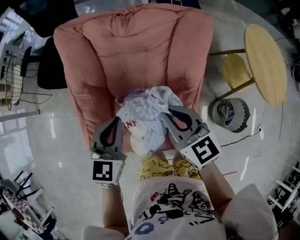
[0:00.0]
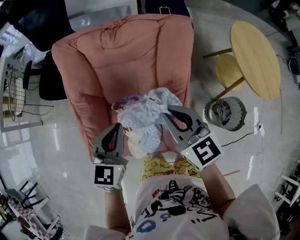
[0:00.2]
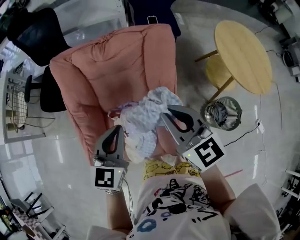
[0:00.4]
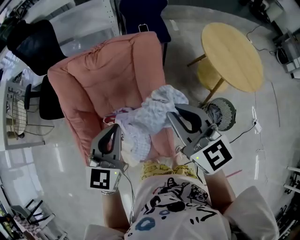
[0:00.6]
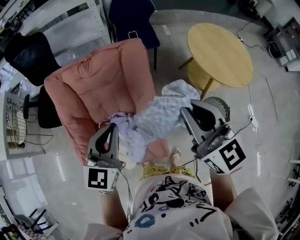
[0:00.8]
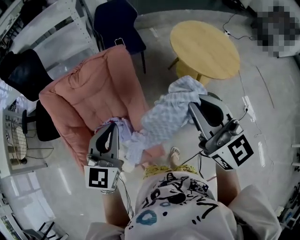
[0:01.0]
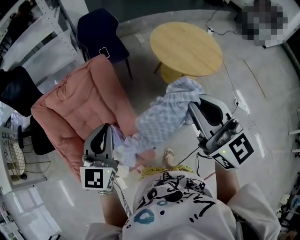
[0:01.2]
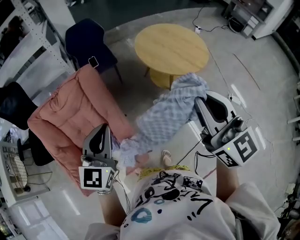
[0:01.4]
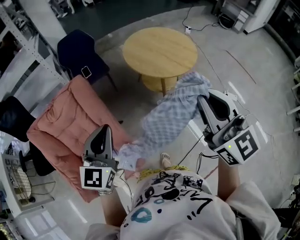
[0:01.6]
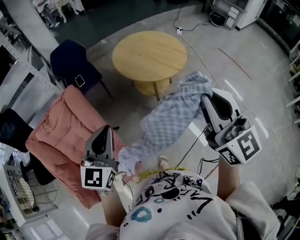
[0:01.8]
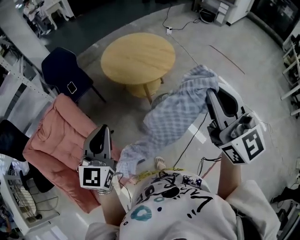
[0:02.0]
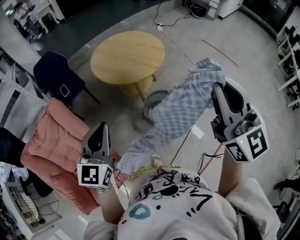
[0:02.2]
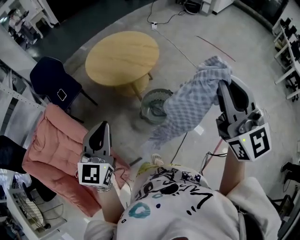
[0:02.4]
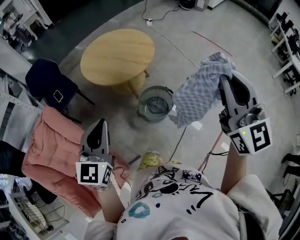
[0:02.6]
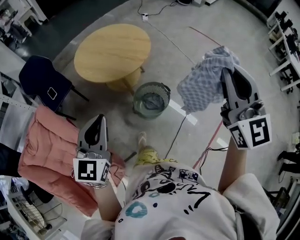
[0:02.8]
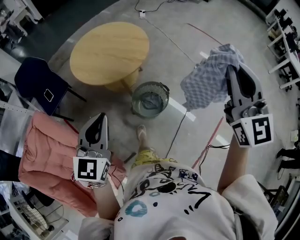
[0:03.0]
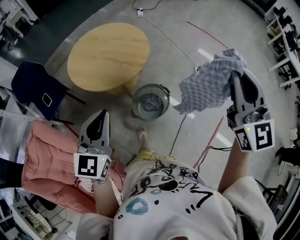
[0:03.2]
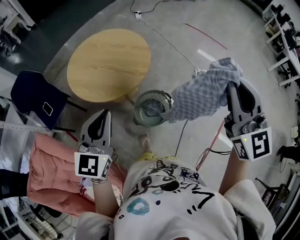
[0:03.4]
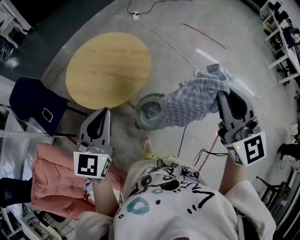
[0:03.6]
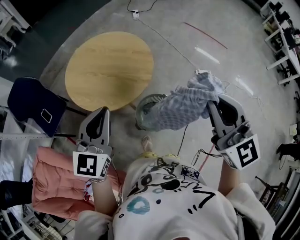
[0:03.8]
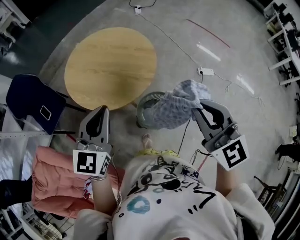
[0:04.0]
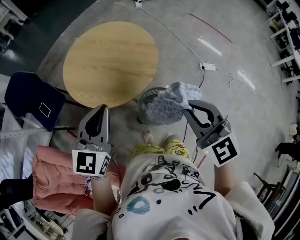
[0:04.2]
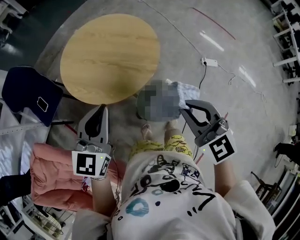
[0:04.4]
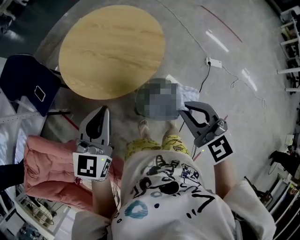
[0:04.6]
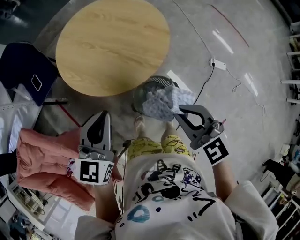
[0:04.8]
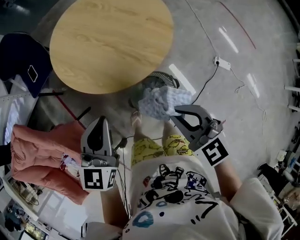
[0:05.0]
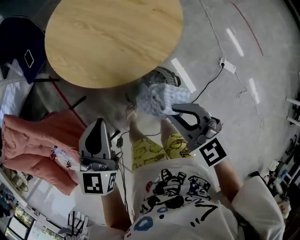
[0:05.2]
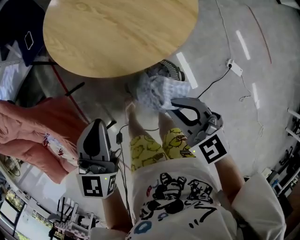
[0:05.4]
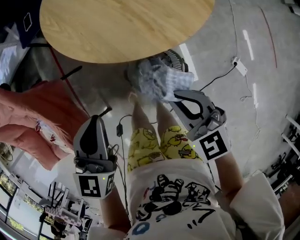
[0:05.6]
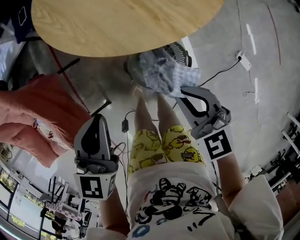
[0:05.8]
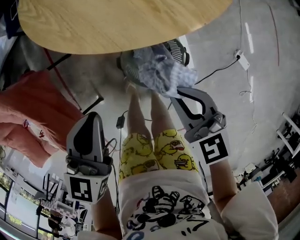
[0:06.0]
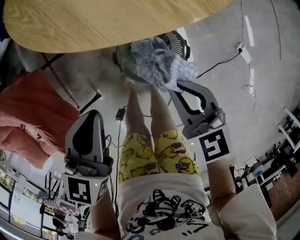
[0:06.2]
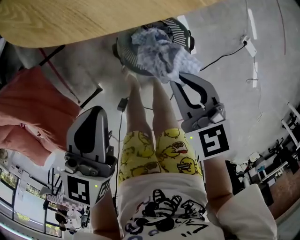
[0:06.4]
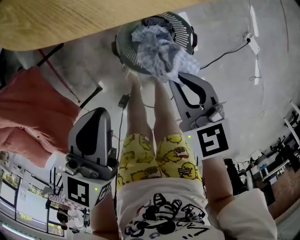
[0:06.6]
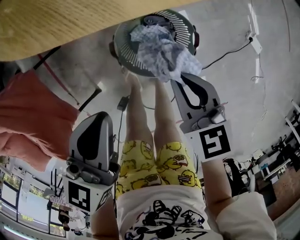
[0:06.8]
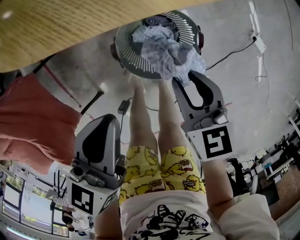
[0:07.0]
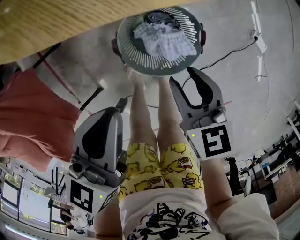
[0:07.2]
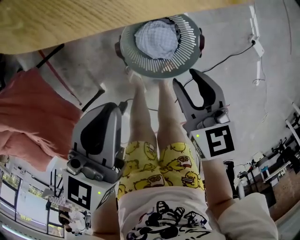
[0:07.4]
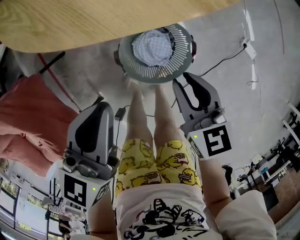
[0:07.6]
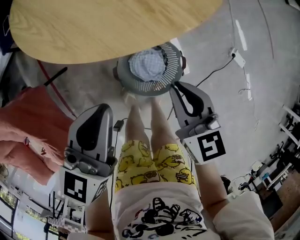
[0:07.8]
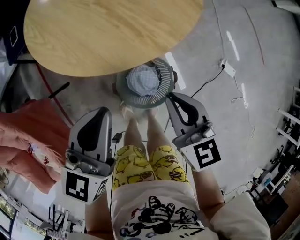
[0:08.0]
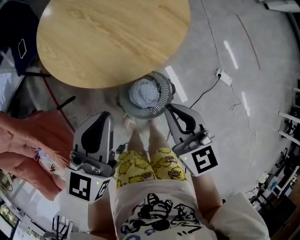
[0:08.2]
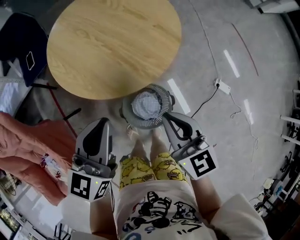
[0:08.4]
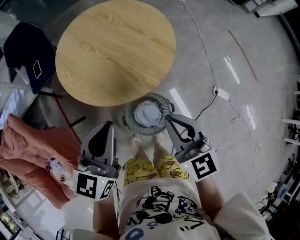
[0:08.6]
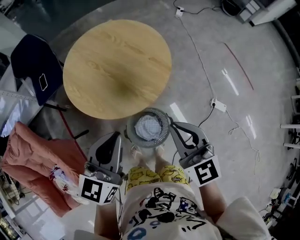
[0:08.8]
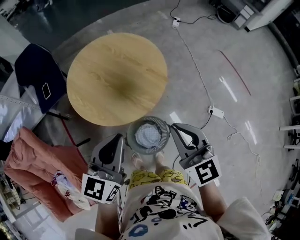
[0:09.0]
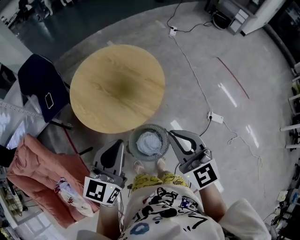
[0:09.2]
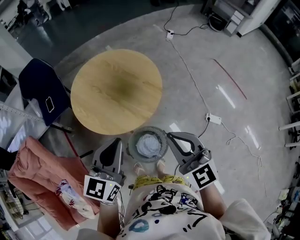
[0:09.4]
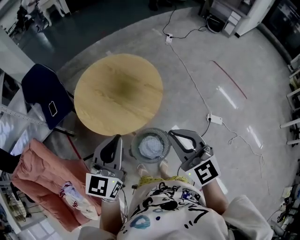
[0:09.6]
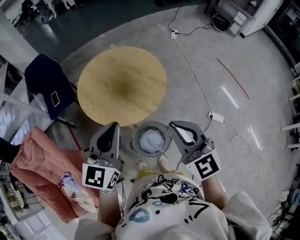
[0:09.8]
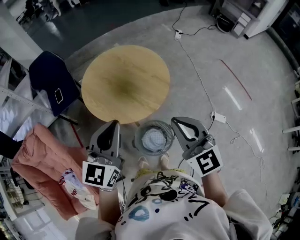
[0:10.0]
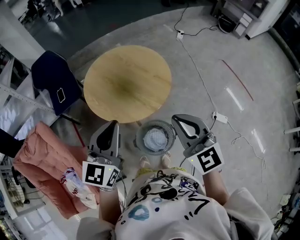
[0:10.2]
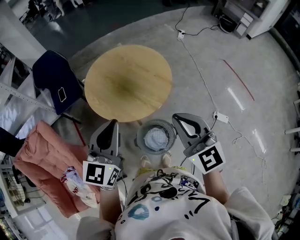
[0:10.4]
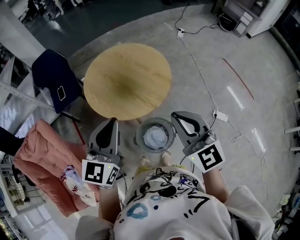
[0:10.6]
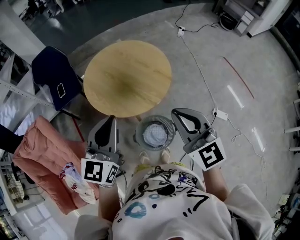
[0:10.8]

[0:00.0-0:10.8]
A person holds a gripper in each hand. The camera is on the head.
0:00.0 to 0:01.6: The right gripper moves roughly 60 cm, and changes its angle by approximately 50 degrees, while the left gripper moves approximately 40 cm, and swivels some 40 degrees.
0:01.6 to 0:03.0: The left gripper ends up approximately 25 cm from where it was, and rotates some 20 degrees; the right gripper shifts by roughly 30 cm, and turns by approximately 40 degrees.
0:03.0 to 0:04.6: The left gripper moves forward and downward, some 25 cm. Meanwhile the right gripper is displaced downward, to the left and forward by roughly 35 cm, and rotates roughly 40 degrees.
0:04.6 to 0:06.2: The grippers both shift downward by approximately 25 cm. The right gripper swivels approximately 30 degrees; the left gripper rotates approximately 30 degrees.
0:06.2 to 0:07.8: The left gripper reaches some 5 cm downward, then returns. The right gripper travels downward and back again, some 10 cm each way, and opens, then closes again.
0:07.8 to 0:09.2: The grippers both shift upward by some 30 cm. The right gripper swivels some 30 degrees.
0:09.2 to 0:10.8: Both grippers move upward, approximately 5 cm.

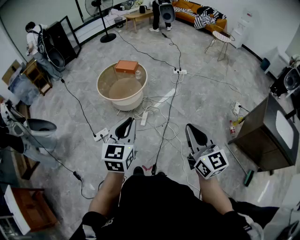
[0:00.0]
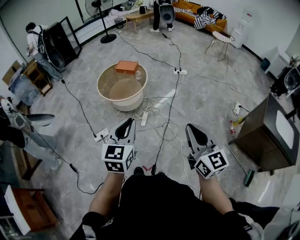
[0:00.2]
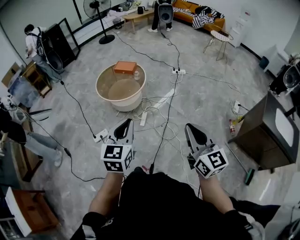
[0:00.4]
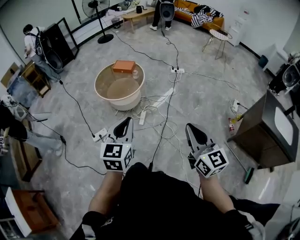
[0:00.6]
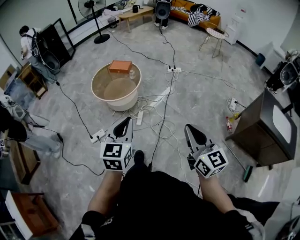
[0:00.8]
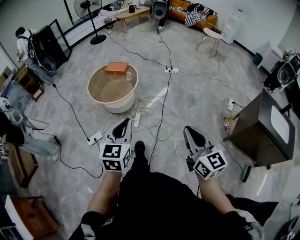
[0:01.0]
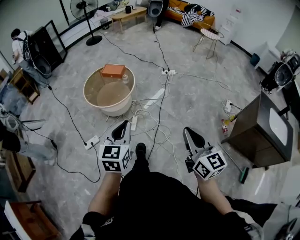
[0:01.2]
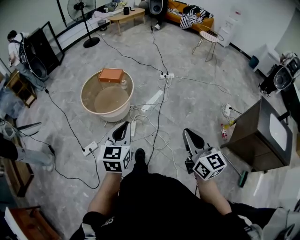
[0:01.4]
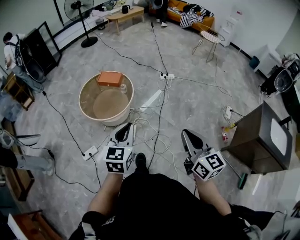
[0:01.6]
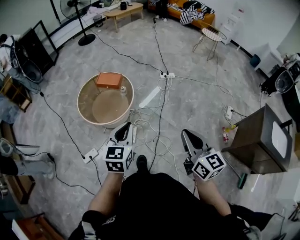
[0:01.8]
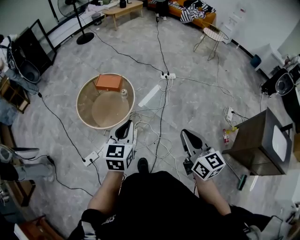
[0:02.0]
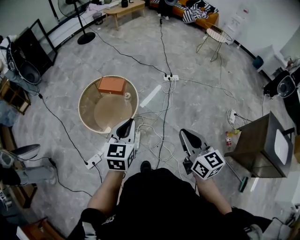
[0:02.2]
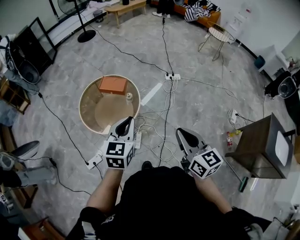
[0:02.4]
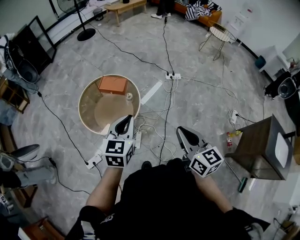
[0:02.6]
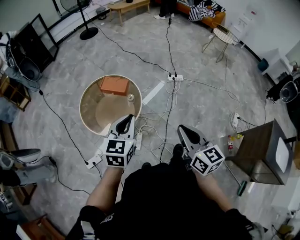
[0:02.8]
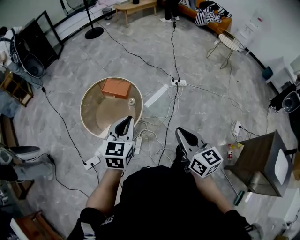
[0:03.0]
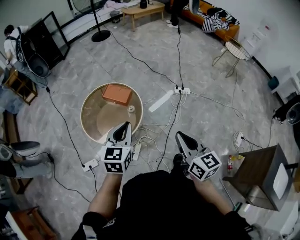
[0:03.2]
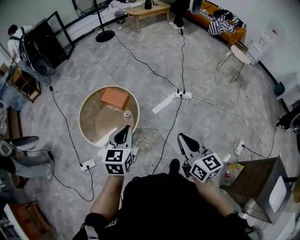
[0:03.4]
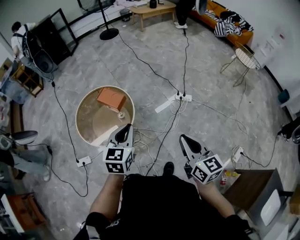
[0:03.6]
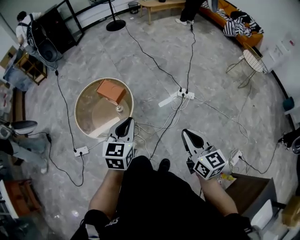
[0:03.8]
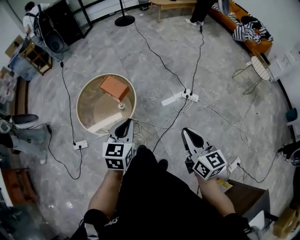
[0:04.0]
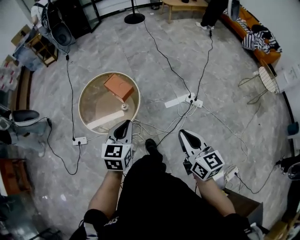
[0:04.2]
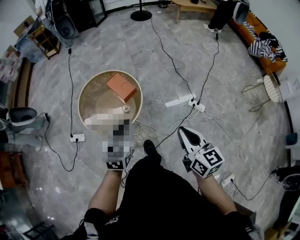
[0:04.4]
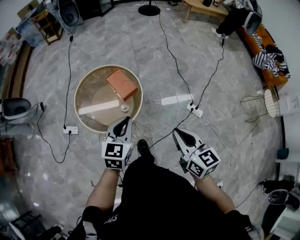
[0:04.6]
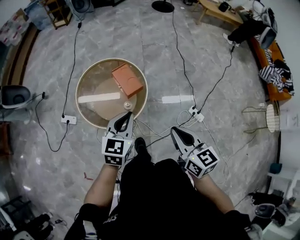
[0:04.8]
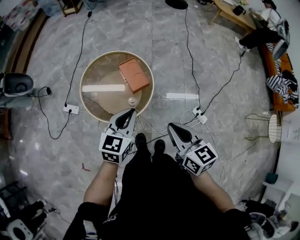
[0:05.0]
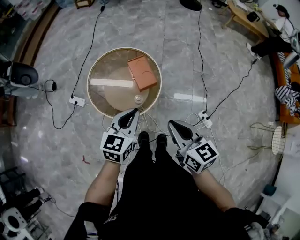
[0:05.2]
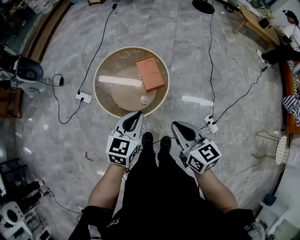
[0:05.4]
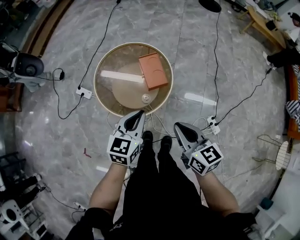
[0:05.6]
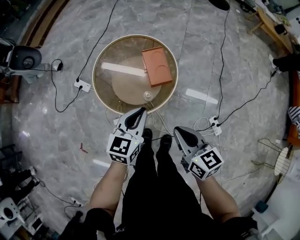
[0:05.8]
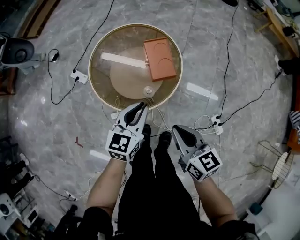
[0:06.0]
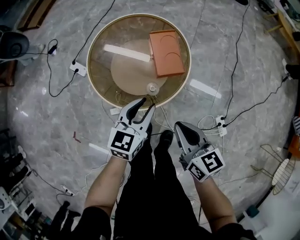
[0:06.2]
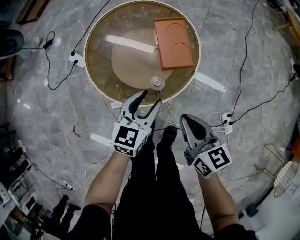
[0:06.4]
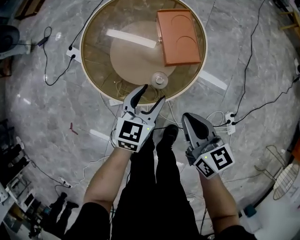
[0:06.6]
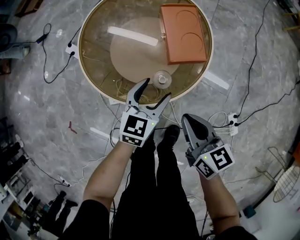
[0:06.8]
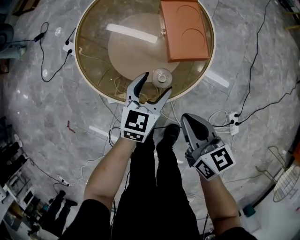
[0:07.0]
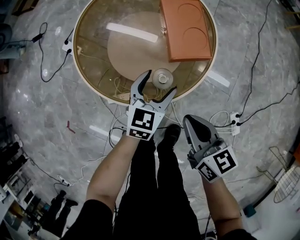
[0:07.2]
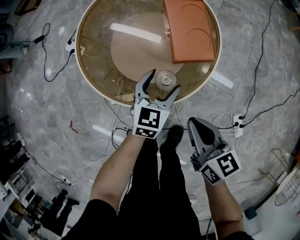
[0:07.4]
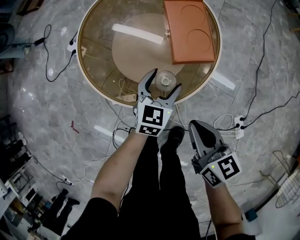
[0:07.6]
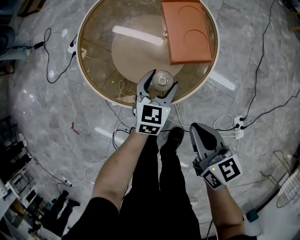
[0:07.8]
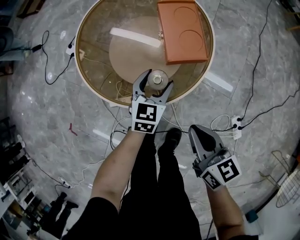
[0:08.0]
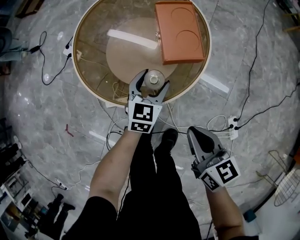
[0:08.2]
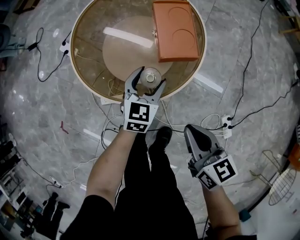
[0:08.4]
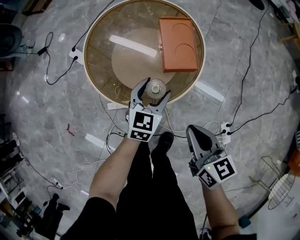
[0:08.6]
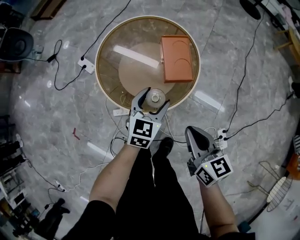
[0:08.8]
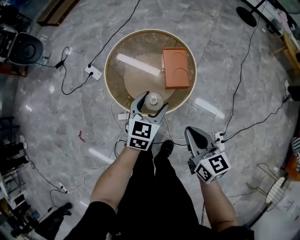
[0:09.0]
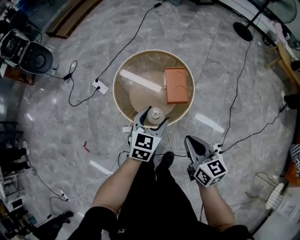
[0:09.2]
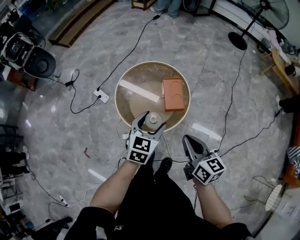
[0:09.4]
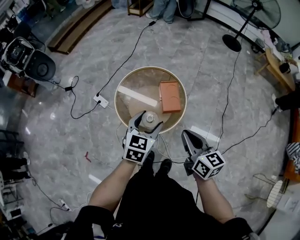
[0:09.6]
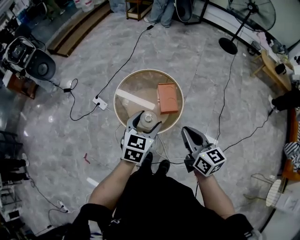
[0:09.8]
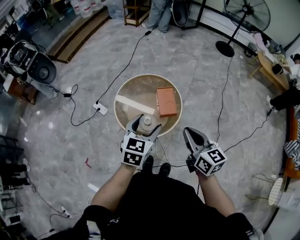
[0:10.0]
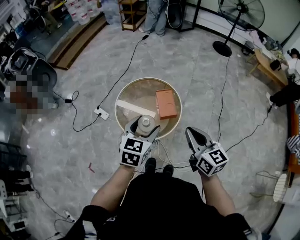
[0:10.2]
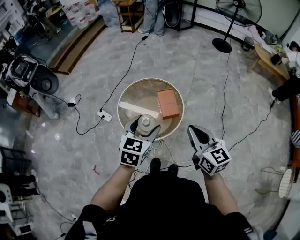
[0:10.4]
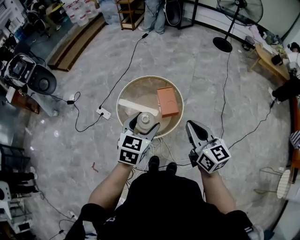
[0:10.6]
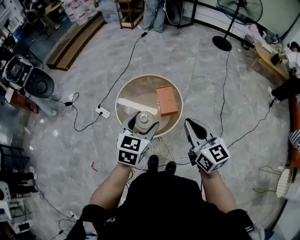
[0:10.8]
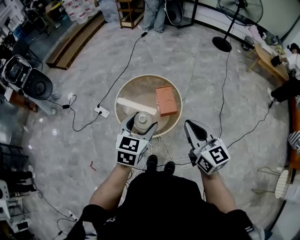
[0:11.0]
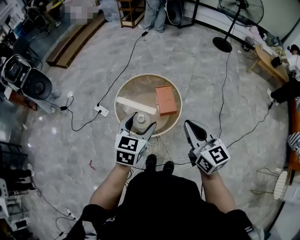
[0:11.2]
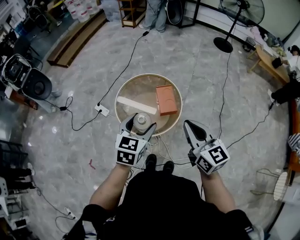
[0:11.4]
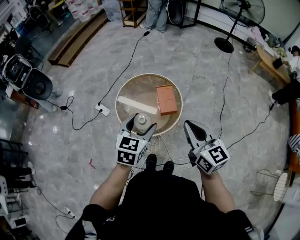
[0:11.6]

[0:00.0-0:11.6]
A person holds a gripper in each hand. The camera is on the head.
0:00.0 to 0:01.4: Both grippers travel together forward, about 15 cm.
0:01.4 to 0:02.8: The grippers both shift forward by about 40 cm.
0:02.8 to 0:04.4: The left gripper ends up approximately 30 cm from where it was, and turns by some 30 degrees. Meanwhile the right gripper changes place by roughly 40 cm, and rotates roughly 30 degrees.
0:04.4 to 0:05.8: The right gripper shifts by approximately 30 cm, and swivels approximately 40 degrees, while the left gripper ends up some 20 cm from where it was, and rotates about 20 degrees.
0:05.8 to 0:07.2: The grippers both shift downward by approximately 35 cm. The left gripper opens up.
0:07.2 to 0:08.8: Both grippers travel together upward, approximately 15 cm.
0:08.8 to 0:10.2: The two grippers go some 35 cm upward.
0:10.2 to 0:11.6: The grippers make only small movements.

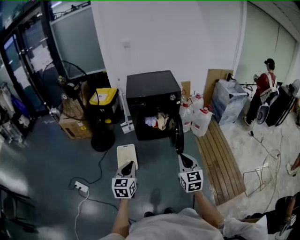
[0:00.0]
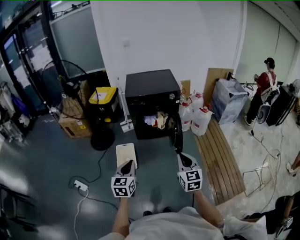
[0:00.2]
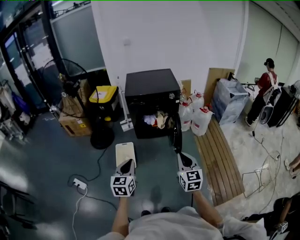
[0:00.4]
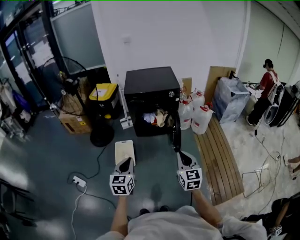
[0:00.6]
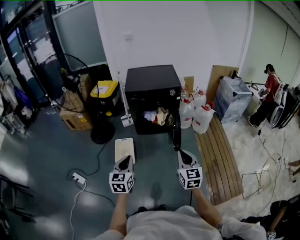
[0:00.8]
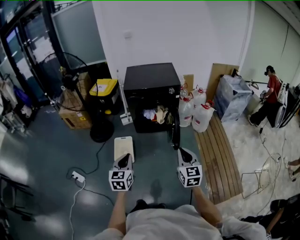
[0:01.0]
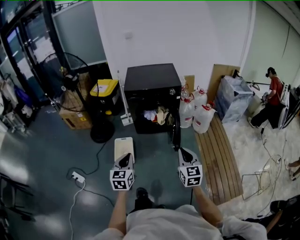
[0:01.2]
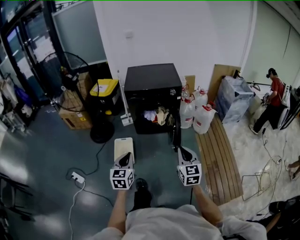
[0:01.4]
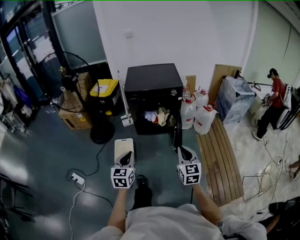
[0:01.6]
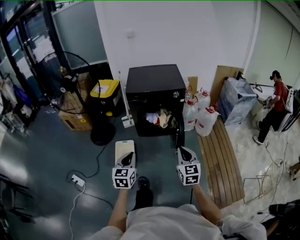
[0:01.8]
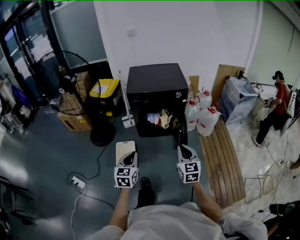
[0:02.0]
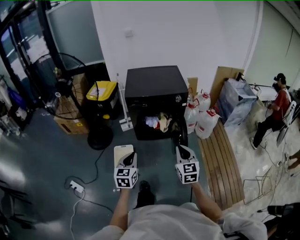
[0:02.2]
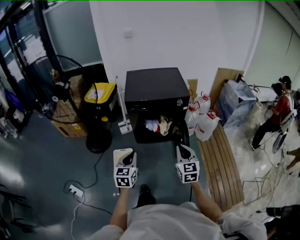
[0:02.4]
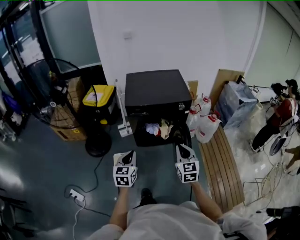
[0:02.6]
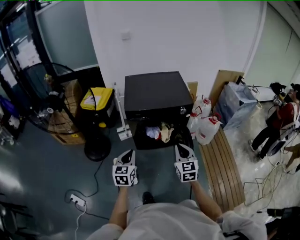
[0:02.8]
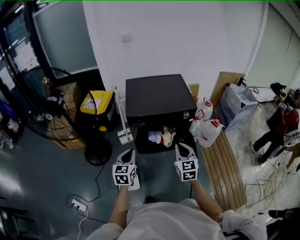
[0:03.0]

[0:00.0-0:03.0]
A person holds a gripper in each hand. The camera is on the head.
0:00.0 to 0:01.6: Both grippers move forward and to the right, roughly 10 cm.
0:01.6 to 0:03.0: The right gripper moves forward and to the left, about 35 cm; the left gripper is displaced forward by approximately 35 cm.
